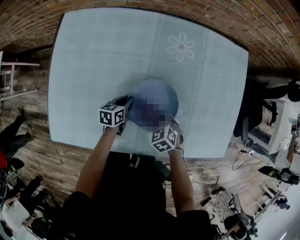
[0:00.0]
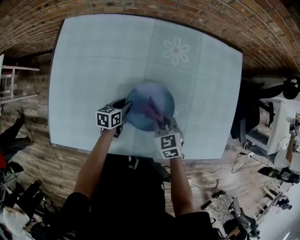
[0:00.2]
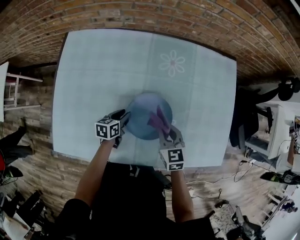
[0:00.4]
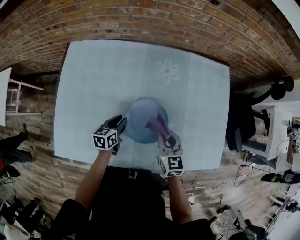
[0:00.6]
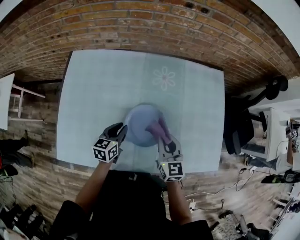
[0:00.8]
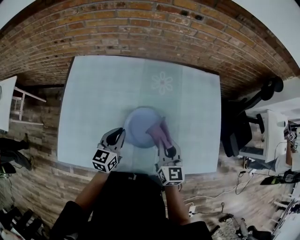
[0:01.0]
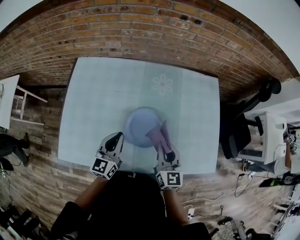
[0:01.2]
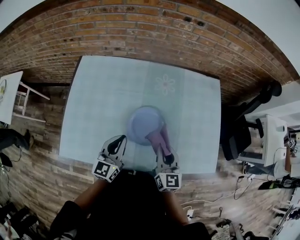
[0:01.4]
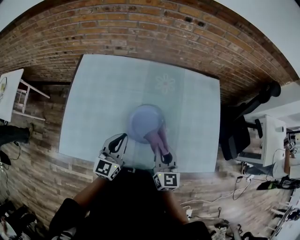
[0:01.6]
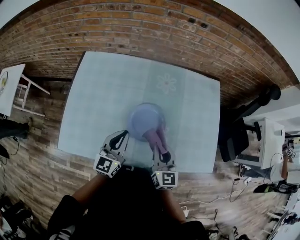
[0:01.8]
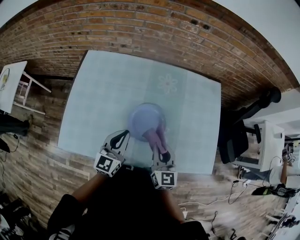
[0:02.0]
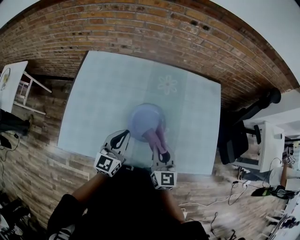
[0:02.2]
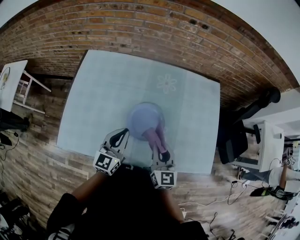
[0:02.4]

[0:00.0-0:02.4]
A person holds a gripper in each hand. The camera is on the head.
0:00.0 to 0:01.2: The grippers both shift upward by some 25 cm. The right gripper tips its fingers upward by approximately 50 degrees. Meanwhile the left gripper tips its fingers upward by roughly 30 degrees, and opens, then closes again.
0:01.2 to 0:02.4: The left gripper shifts by some 5 cm.

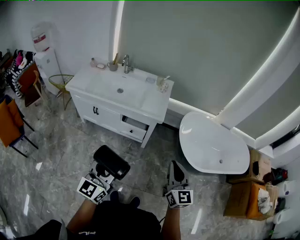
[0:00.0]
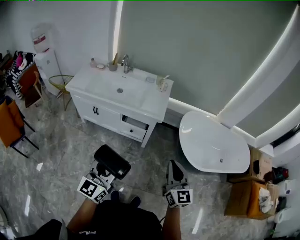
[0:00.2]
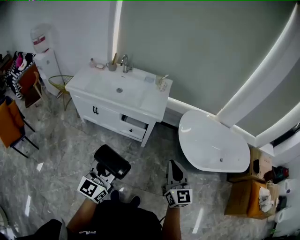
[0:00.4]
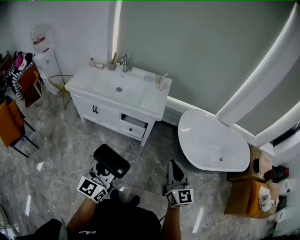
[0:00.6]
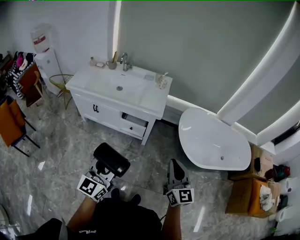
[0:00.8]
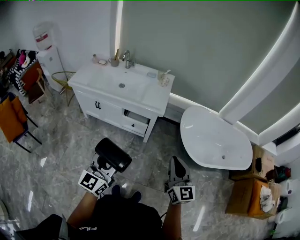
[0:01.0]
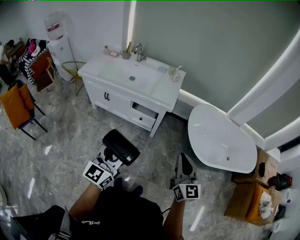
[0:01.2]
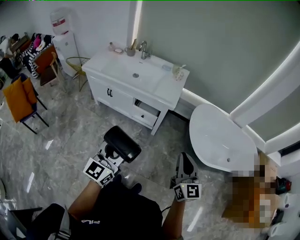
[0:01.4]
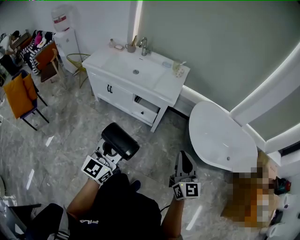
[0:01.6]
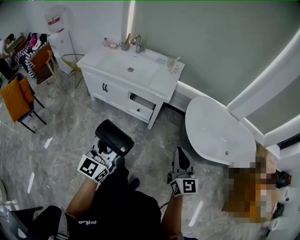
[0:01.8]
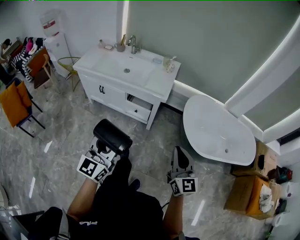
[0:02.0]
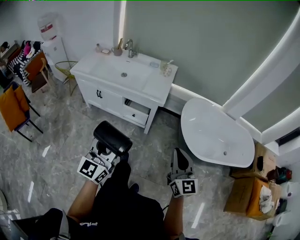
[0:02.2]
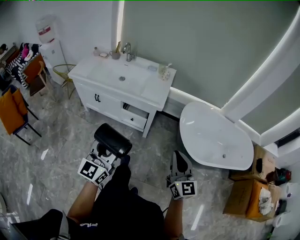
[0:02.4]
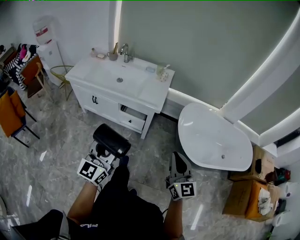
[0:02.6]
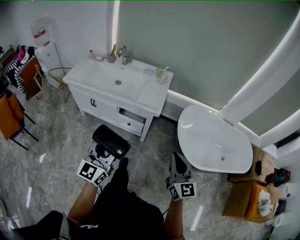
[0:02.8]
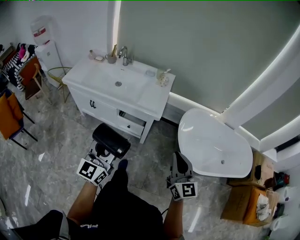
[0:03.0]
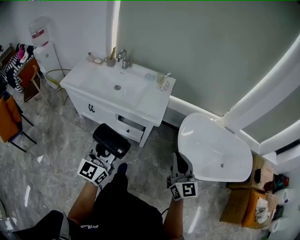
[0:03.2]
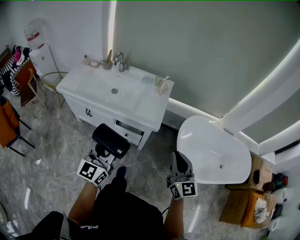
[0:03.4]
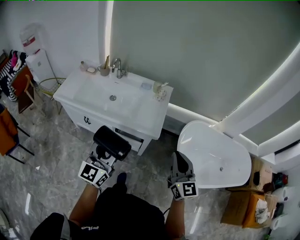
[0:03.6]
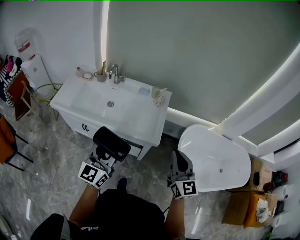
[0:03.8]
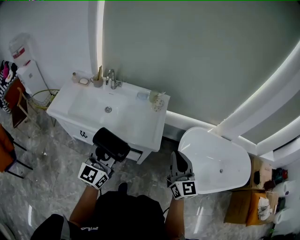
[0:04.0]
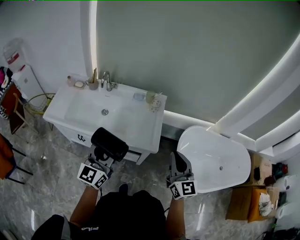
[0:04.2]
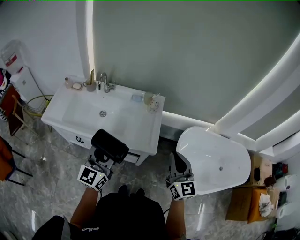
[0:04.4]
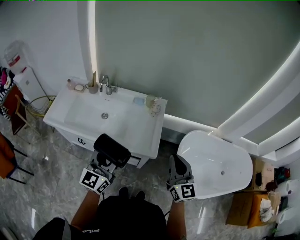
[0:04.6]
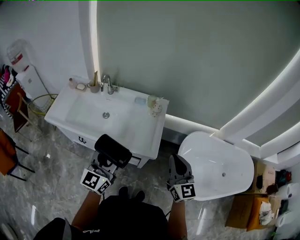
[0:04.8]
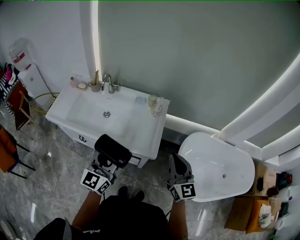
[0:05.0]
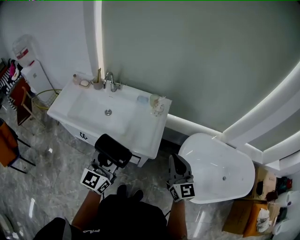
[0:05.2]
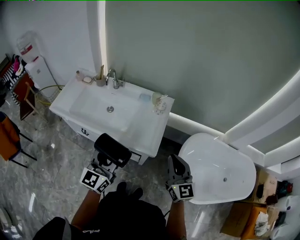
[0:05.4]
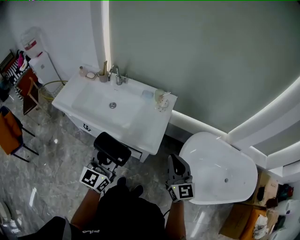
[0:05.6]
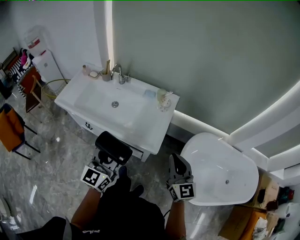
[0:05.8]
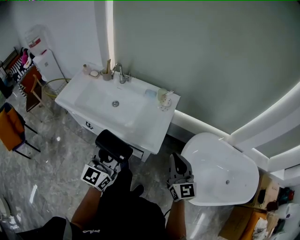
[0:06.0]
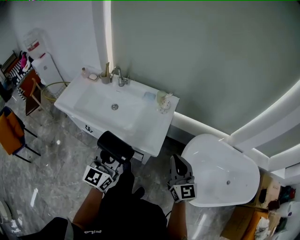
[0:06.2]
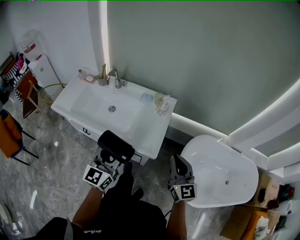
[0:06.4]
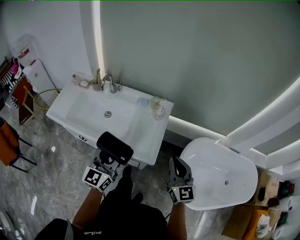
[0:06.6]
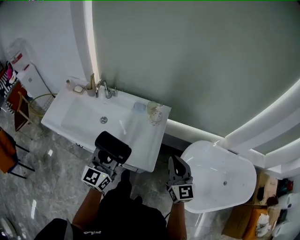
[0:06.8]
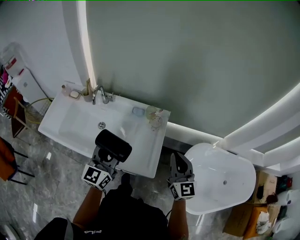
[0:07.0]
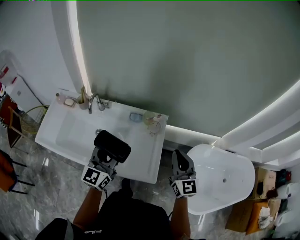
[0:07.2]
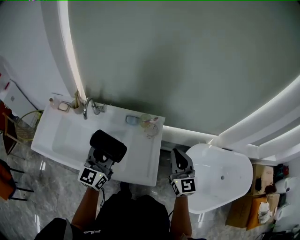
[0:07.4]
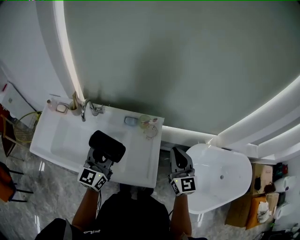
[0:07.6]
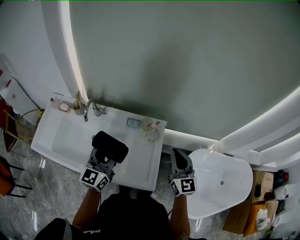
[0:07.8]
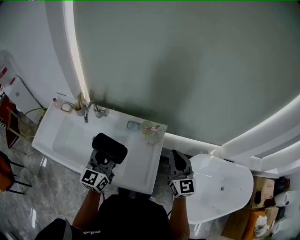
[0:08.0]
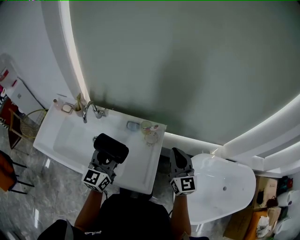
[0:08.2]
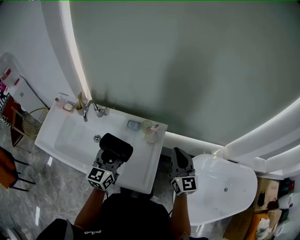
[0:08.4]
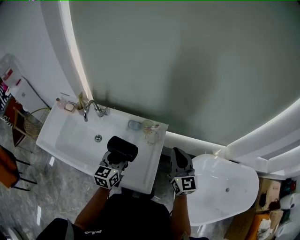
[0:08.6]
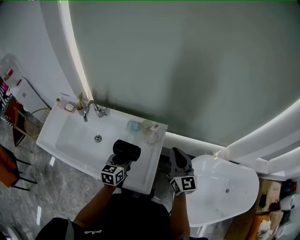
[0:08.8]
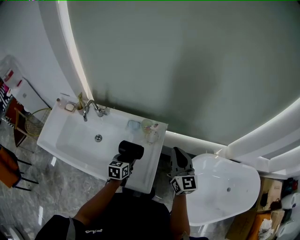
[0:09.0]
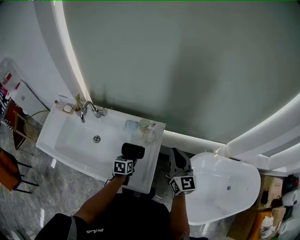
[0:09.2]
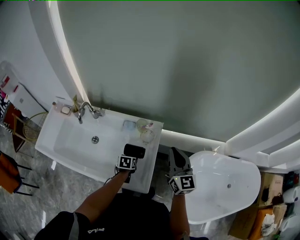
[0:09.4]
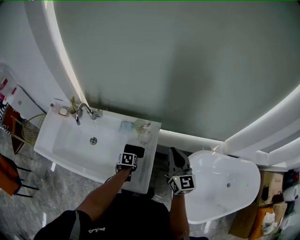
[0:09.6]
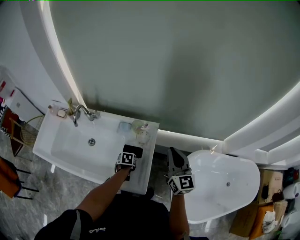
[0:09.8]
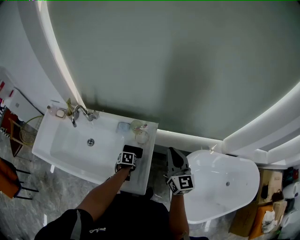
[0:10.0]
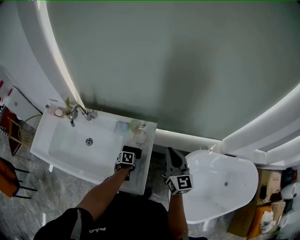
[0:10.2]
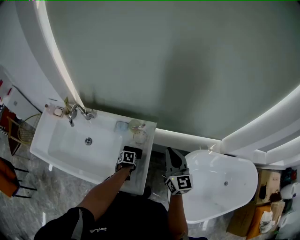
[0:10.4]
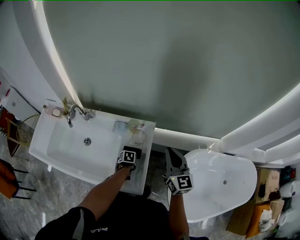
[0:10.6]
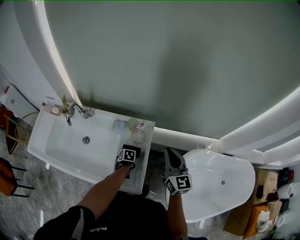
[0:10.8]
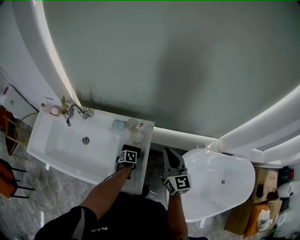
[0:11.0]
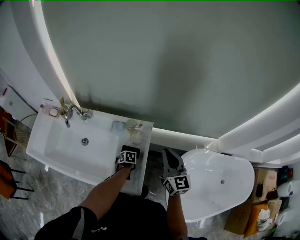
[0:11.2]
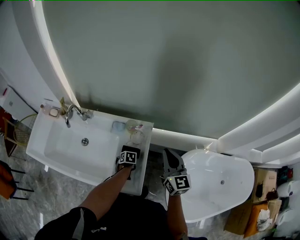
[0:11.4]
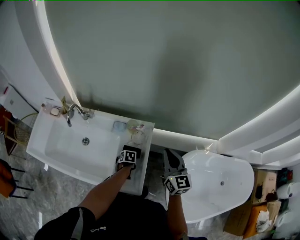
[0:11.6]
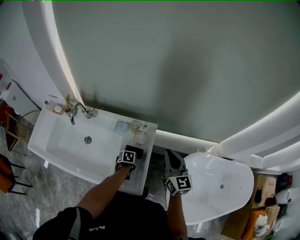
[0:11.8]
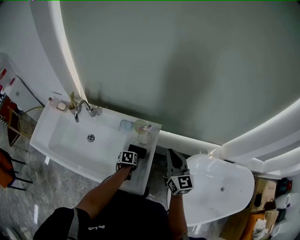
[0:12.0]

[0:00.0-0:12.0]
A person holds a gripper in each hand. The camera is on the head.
0:00.0 to 0:01.6: The two grippers go approximately 5 cm to the right.
0:01.6 to 0:03.0: The grippers both shift forward by some 15 cm.
0:03.0 to 0:04.4: The grippers both shift forward by some 30 cm.
0:04.4 to 0:06.0: Both grippers move to the right, approximately 5 cm.
0:06.0 to 0:07.6: The grippers both shift forward by approximately 30 cm.
0:07.6 to 0:09.0: The right gripper moves to the right, approximately 5 cm, while the left gripper is displaced downward and to the right by about 25 cm, and tips its fingers downward by some 40 degrees.
0:09.0 to 0:10.4: The left gripper shifts roughly 15 cm downward, and angles its fingers downward, by roughly 40 degrees.
0:10.4 to 0:12.0: There are only small adjustments of the grippers.

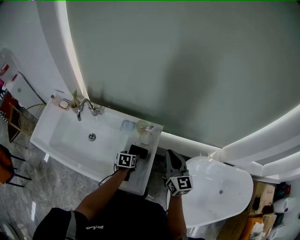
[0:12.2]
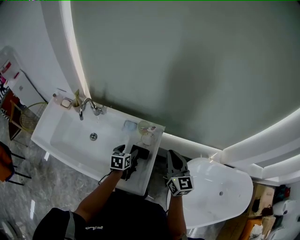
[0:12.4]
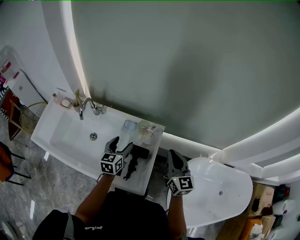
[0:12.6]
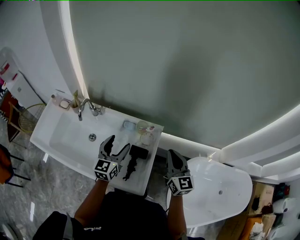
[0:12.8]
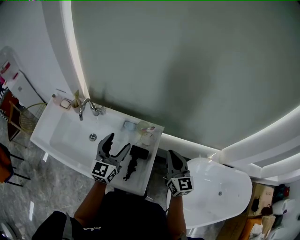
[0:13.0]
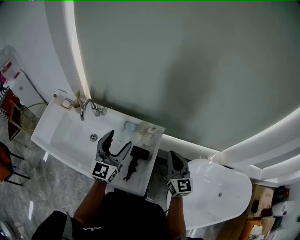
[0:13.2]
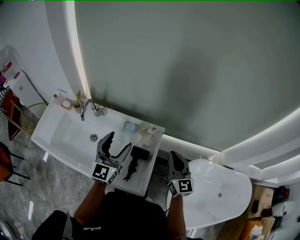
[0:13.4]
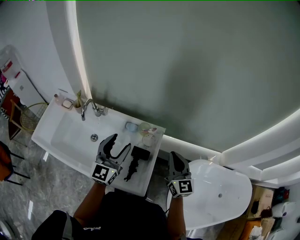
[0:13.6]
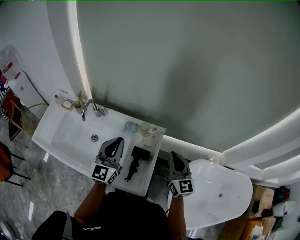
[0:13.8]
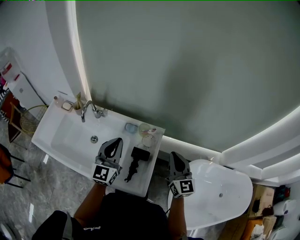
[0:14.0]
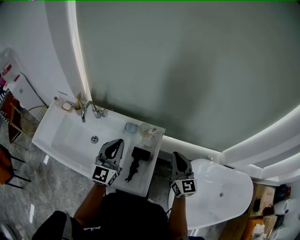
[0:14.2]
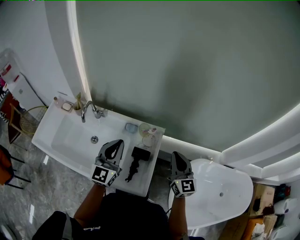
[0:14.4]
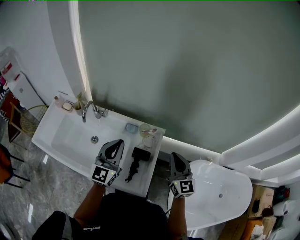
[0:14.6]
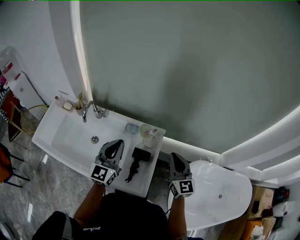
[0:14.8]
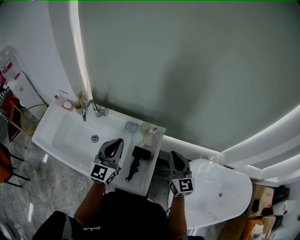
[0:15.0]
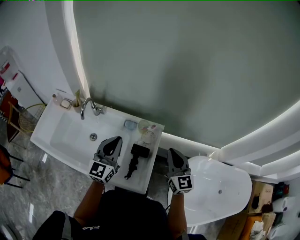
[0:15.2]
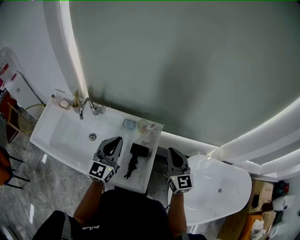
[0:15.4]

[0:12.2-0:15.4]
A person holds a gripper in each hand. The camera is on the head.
0:12.2 to 0:13.8: The left gripper travels upward by roughly 30 cm, tips its fingers upward by about 60 degrees, and closes up.
0:13.8 to 0:15.4: The grippers make only small movements.

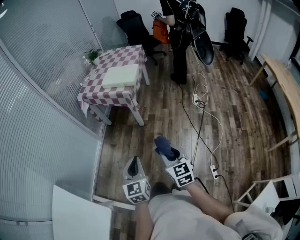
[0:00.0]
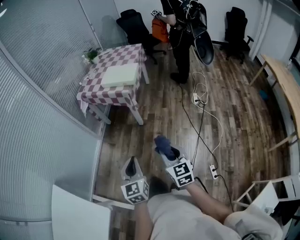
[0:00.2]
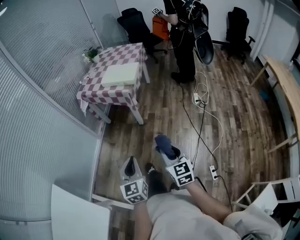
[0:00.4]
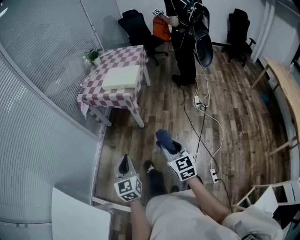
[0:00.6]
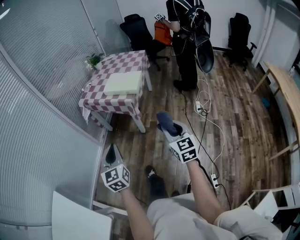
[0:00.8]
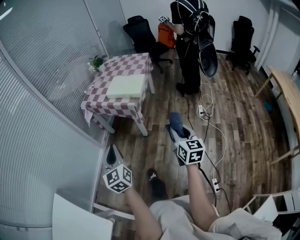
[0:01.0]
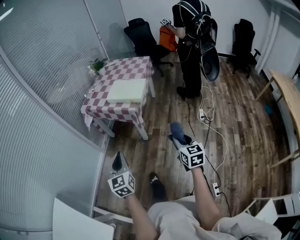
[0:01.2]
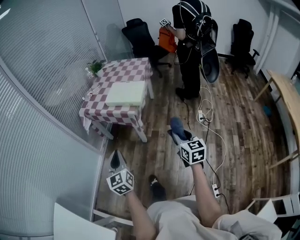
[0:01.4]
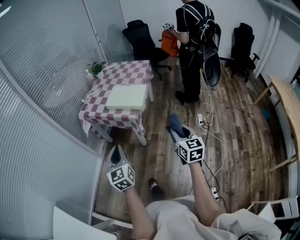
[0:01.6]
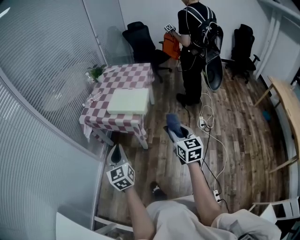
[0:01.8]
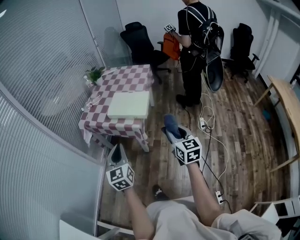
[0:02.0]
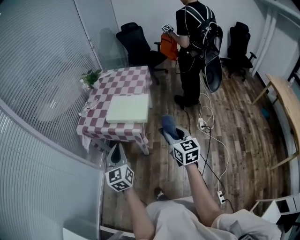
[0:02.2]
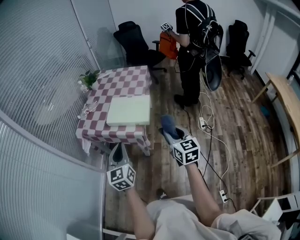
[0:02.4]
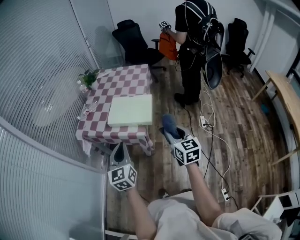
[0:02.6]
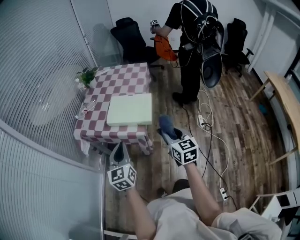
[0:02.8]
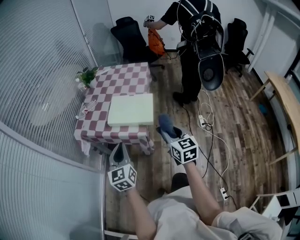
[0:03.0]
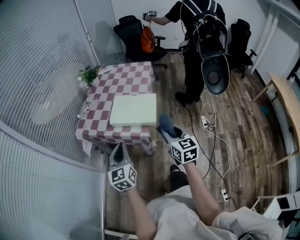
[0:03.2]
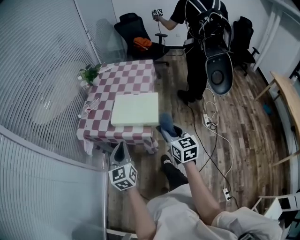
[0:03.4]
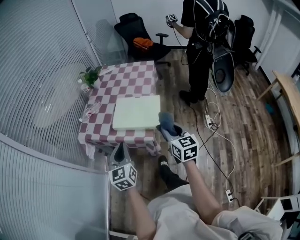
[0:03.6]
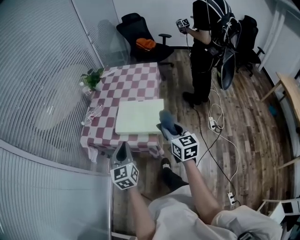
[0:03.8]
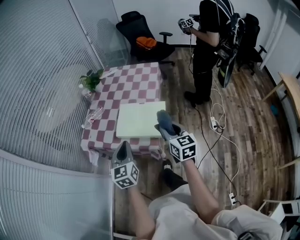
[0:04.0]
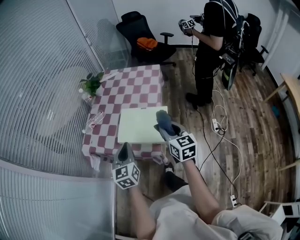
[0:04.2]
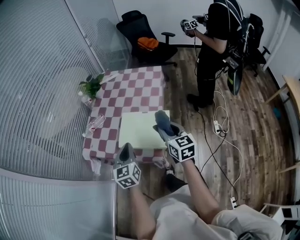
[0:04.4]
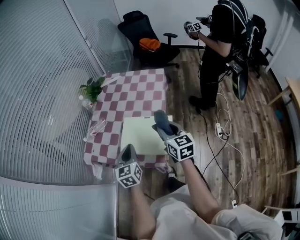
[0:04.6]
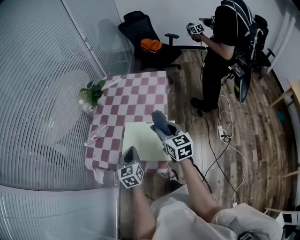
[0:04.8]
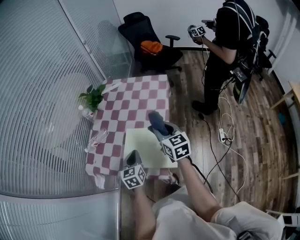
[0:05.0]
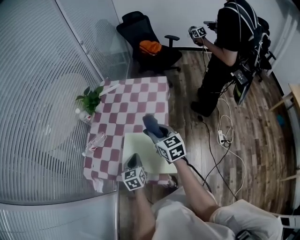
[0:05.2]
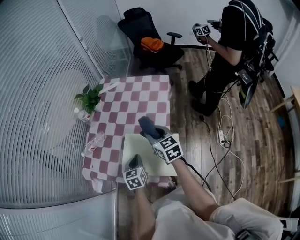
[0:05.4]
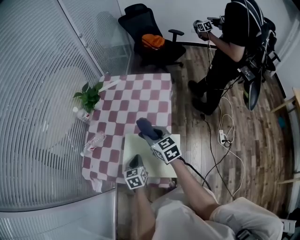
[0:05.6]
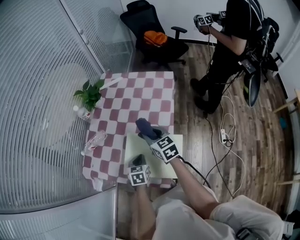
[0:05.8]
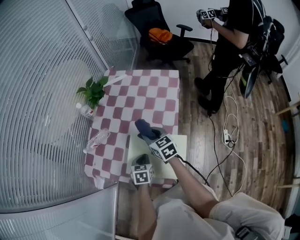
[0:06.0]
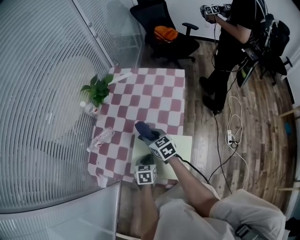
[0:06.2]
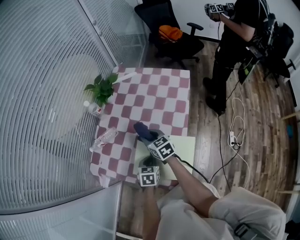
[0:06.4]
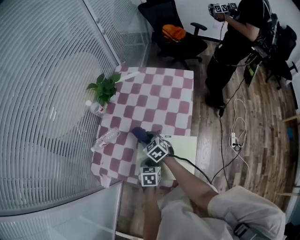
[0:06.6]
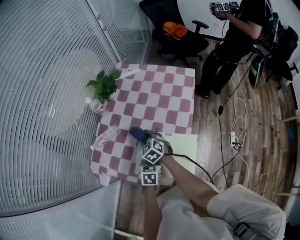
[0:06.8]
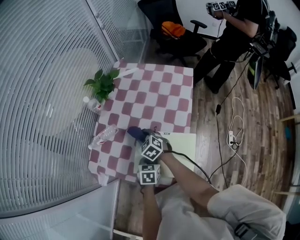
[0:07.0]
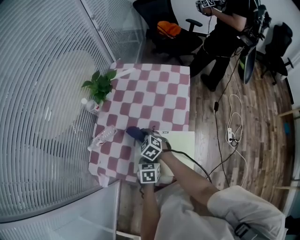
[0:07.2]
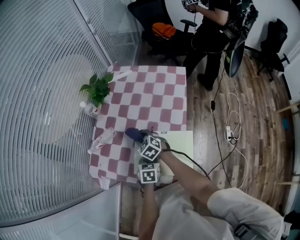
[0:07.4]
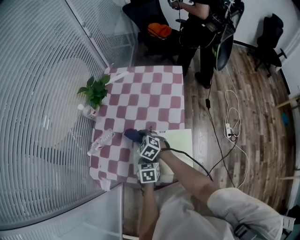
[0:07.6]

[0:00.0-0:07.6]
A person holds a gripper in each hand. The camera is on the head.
0:00.0 to 0:01.6: The grippers both shift forward by about 30 cm.
0:01.6 to 0:03.0: The right gripper goes roughly 25 cm forward and to the left; the left gripper goes roughly 25 cm forward.
0:03.0 to 0:04.6: Both grippers travel together forward, about 25 cm.
0:04.6 to 0:06.0: The right gripper is displaced forward, downward and to the left by some 25 cm, and swivels some 20 degrees; the left gripper heads downward and forward, covering roughly 20 cm, and points its fingers some 30 degrees further downward.
0:06.0 to 0:07.6: The right gripper travels to the left and downward by some 15 cm, and changes its angle by some 30 degrees.
